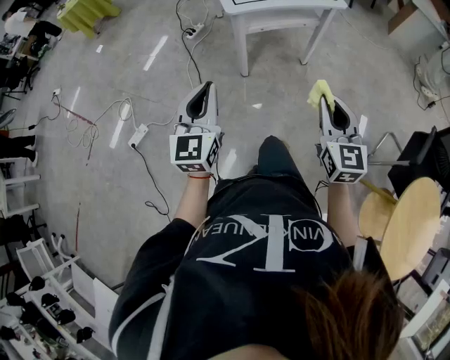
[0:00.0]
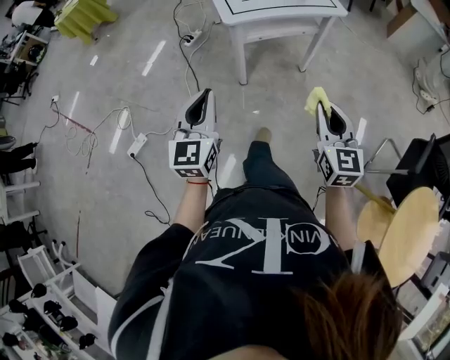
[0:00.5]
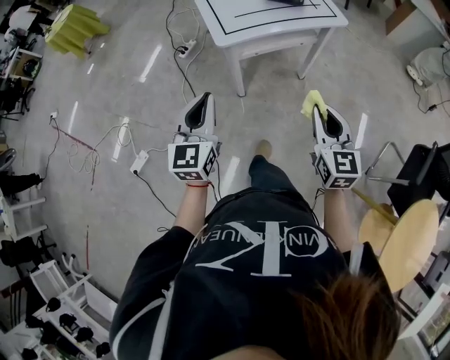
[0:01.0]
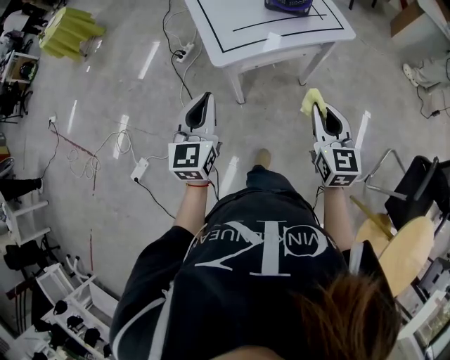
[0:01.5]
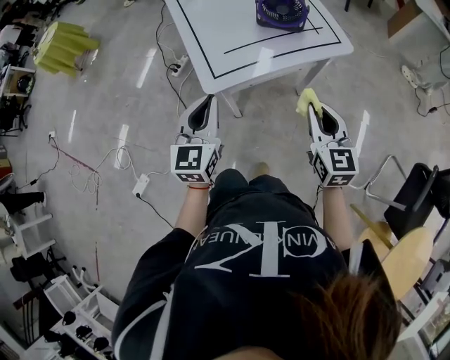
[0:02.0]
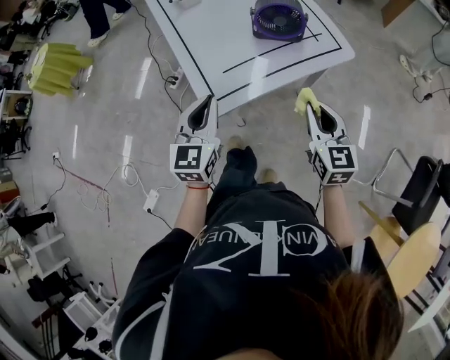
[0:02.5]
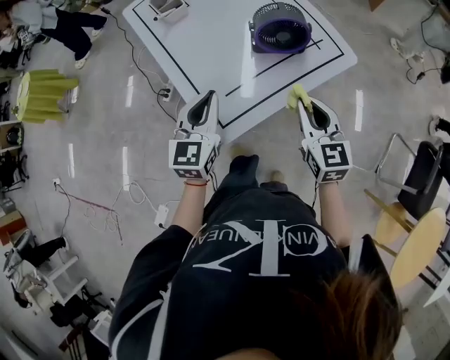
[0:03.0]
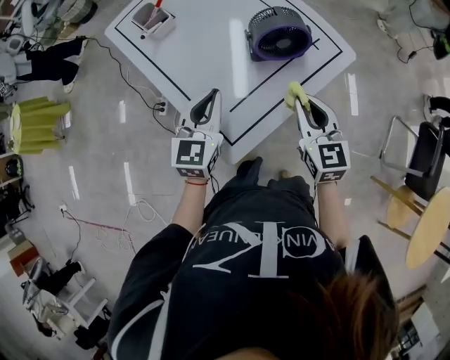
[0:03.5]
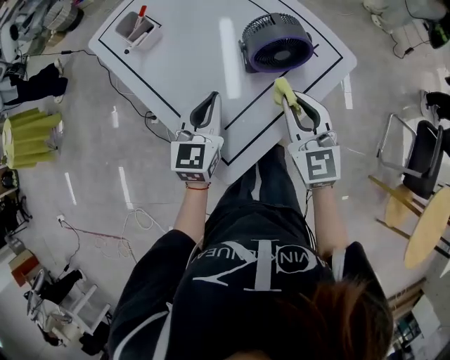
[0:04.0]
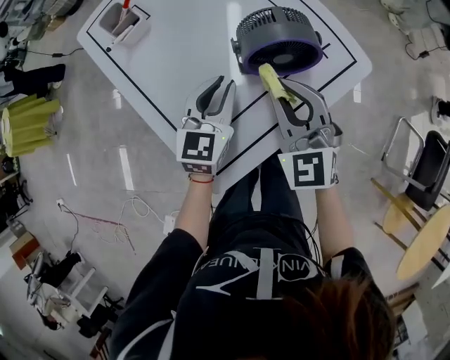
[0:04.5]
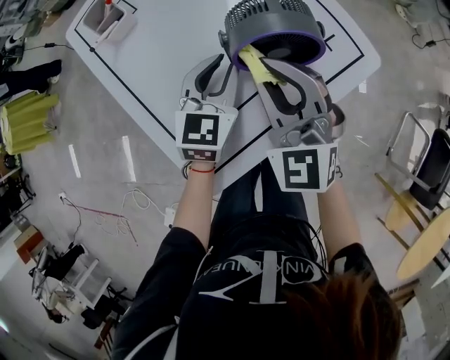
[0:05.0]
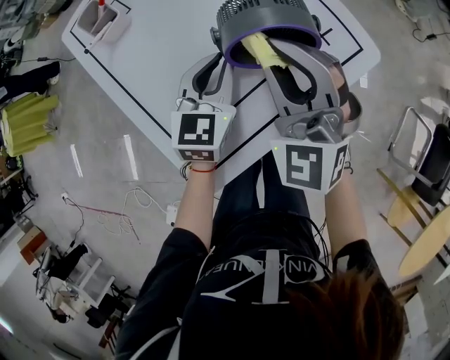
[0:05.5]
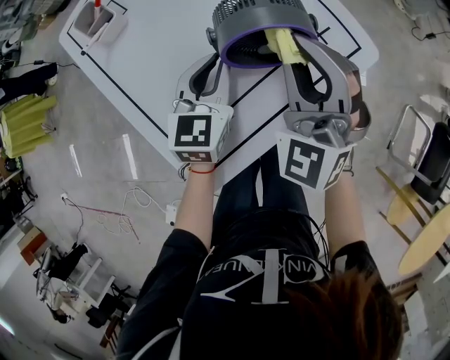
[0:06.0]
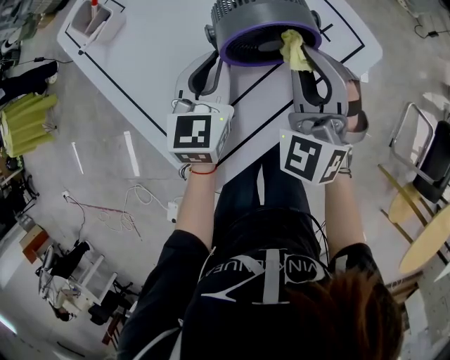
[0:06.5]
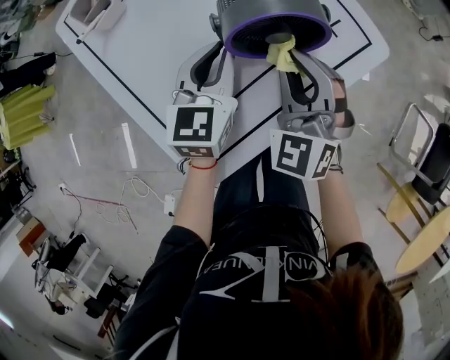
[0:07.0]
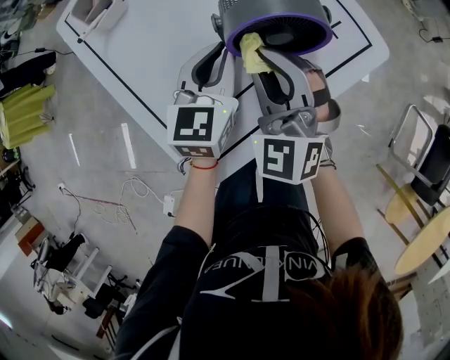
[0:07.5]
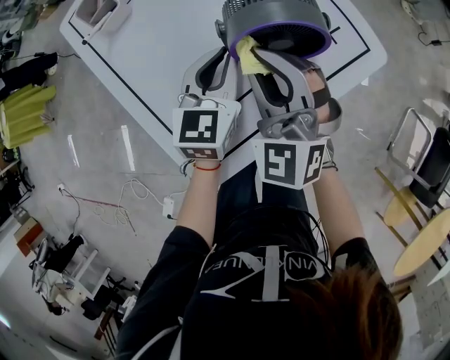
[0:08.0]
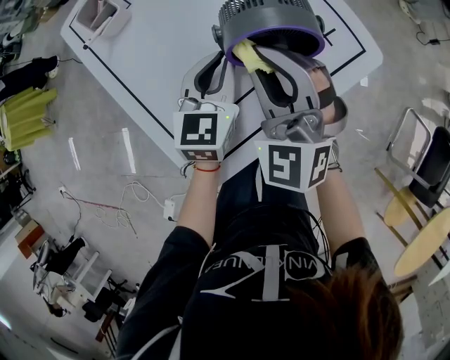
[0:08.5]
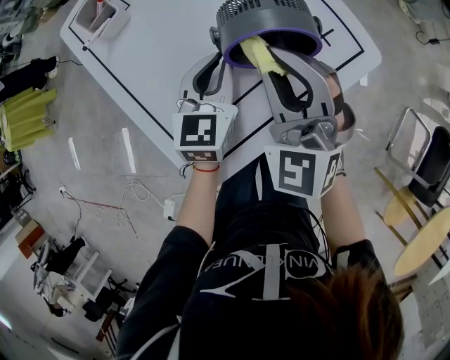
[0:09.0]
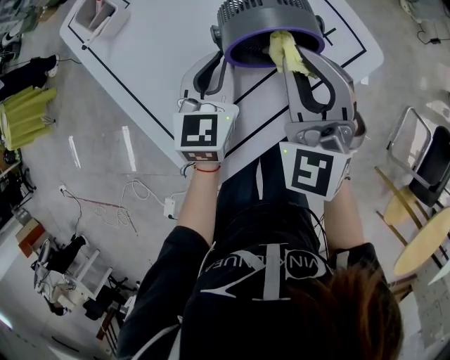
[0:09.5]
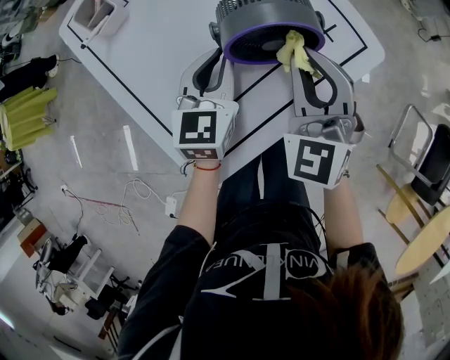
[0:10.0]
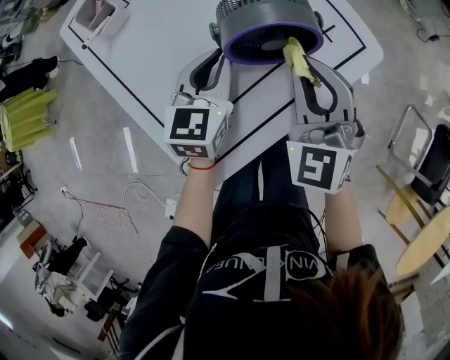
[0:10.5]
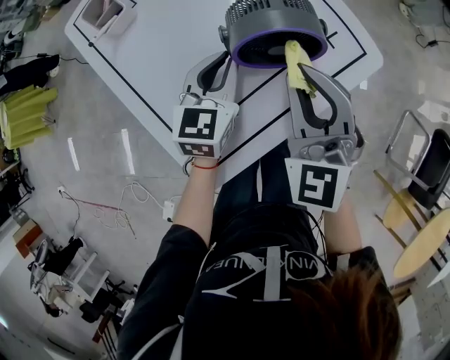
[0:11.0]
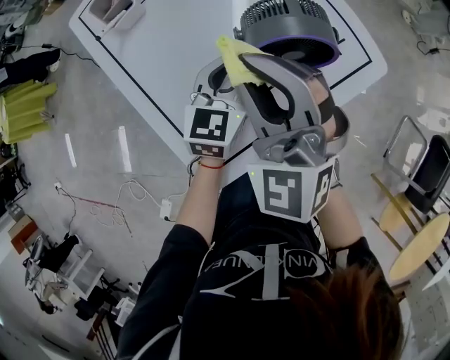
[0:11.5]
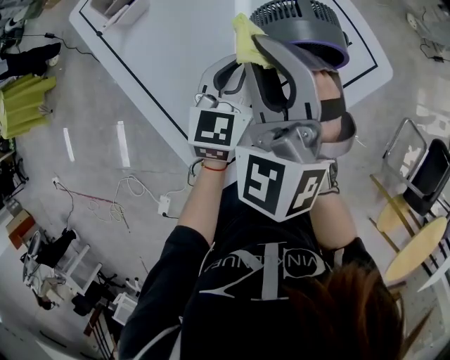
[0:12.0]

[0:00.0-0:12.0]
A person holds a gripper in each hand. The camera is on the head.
0.0 to 2.0 s: The two grippers go approximately 35 cm forward.
2.0 to 4.0 s: The left gripper is displaced forward by approximately 30 cm, and swivels approximately 30 degrees; the right gripper goes some 25 cm forward and to the left.
4.0 to 6.0 s: The right gripper goes about 10 cm forward, and rotates approximately 40 degrees, while the left gripper moves forward, to the right and downward, about 15 cm.
6.0 to 8.0 s: The right gripper shifts about 5 cm to the left.
8.0 to 10.0 s: The right gripper shifts approximately 10 cm to the right.
10.0 to 12.0 s: The right gripper moves to the left and upward, approximately 15 cm.

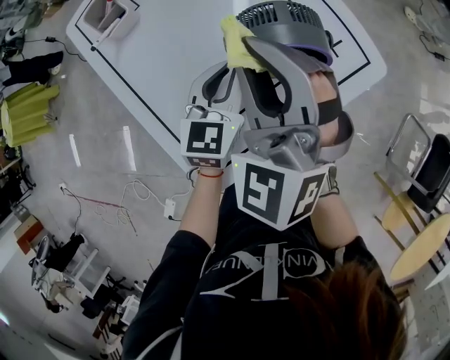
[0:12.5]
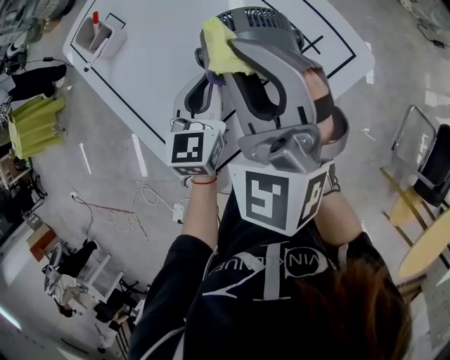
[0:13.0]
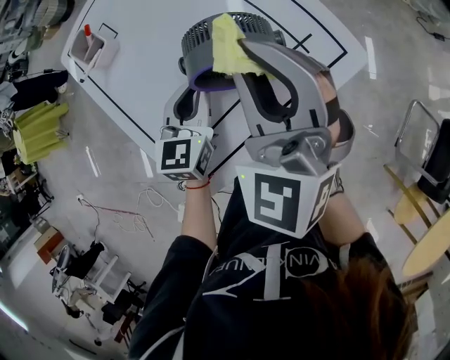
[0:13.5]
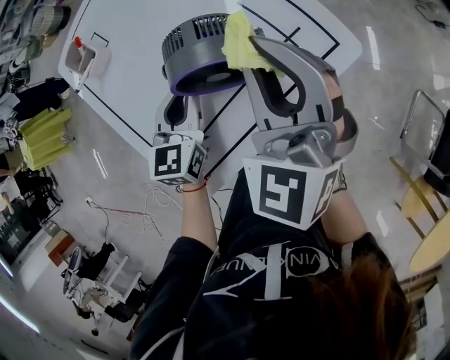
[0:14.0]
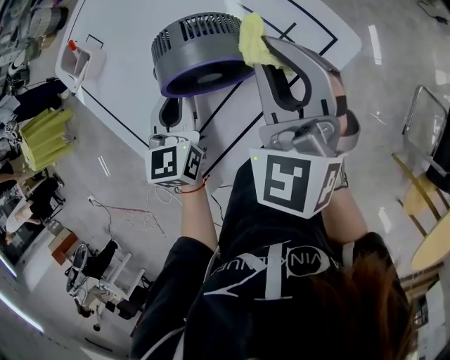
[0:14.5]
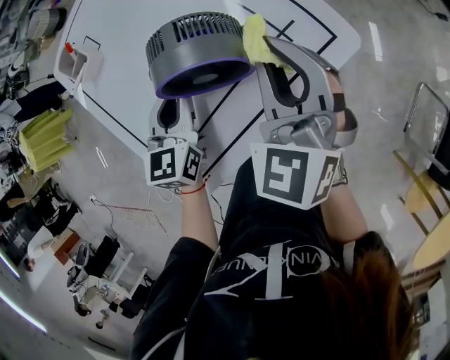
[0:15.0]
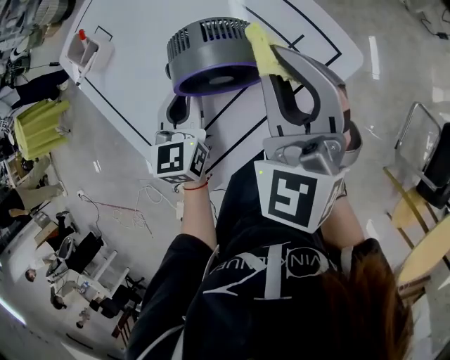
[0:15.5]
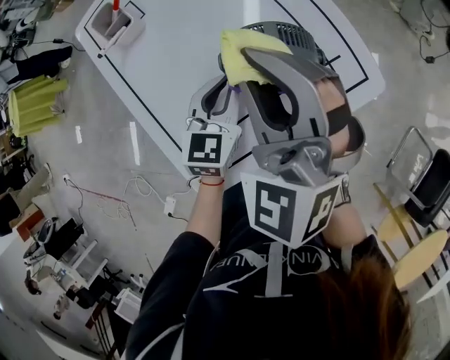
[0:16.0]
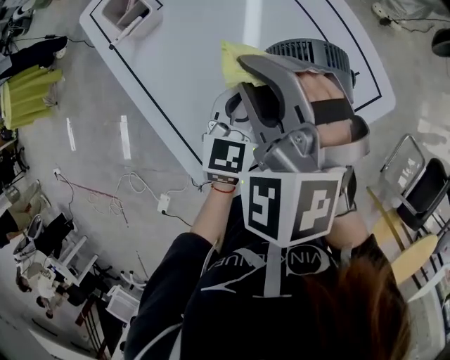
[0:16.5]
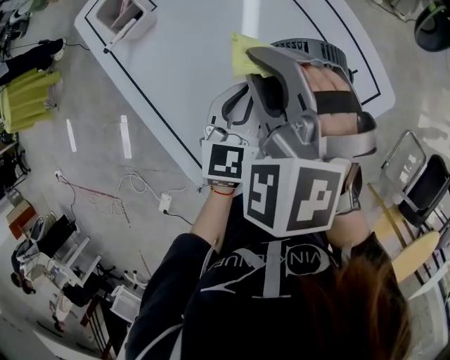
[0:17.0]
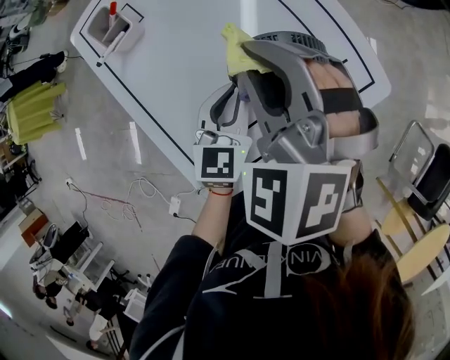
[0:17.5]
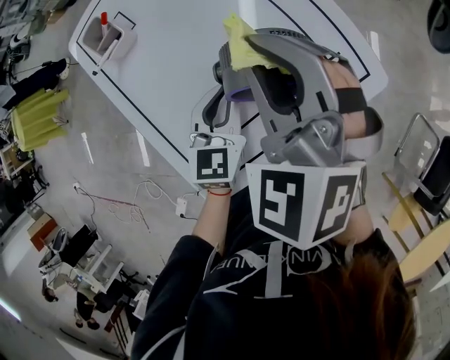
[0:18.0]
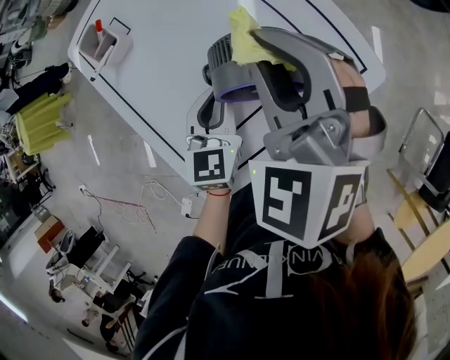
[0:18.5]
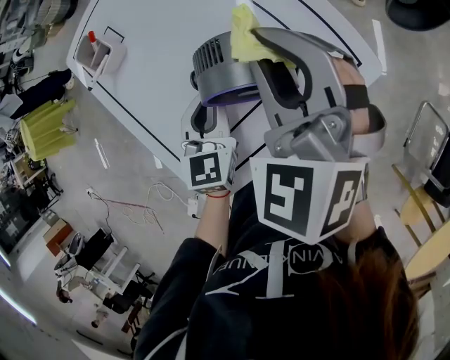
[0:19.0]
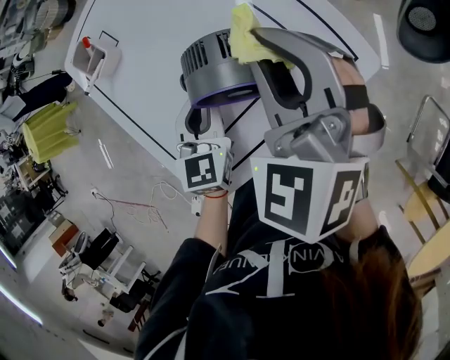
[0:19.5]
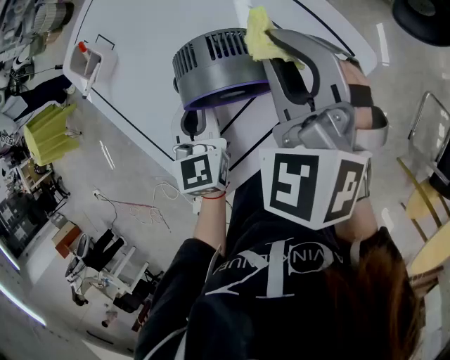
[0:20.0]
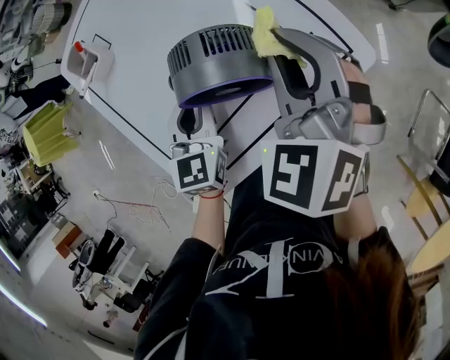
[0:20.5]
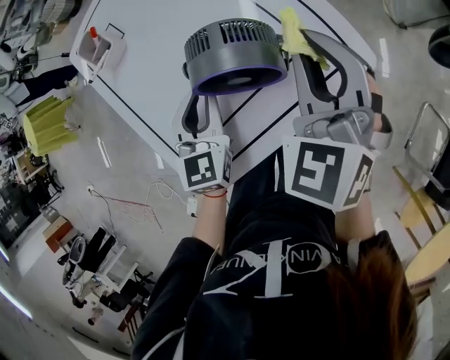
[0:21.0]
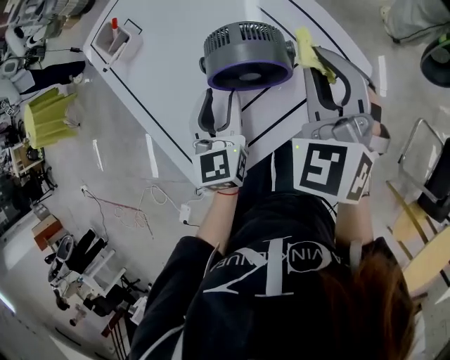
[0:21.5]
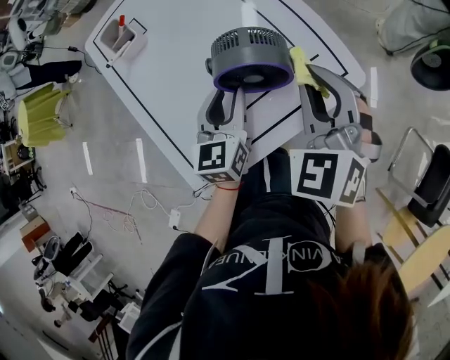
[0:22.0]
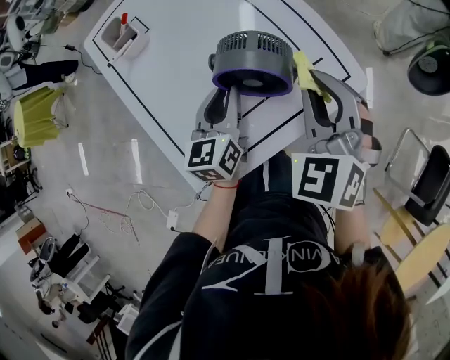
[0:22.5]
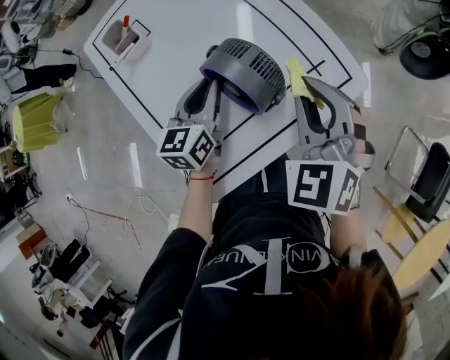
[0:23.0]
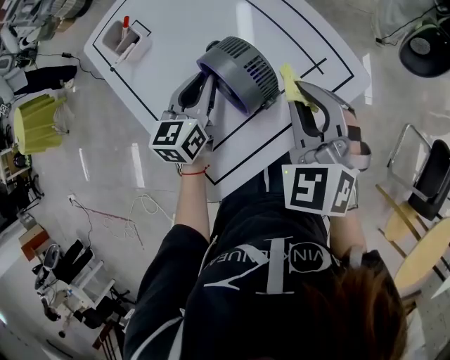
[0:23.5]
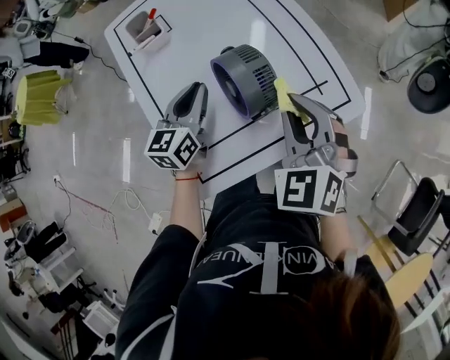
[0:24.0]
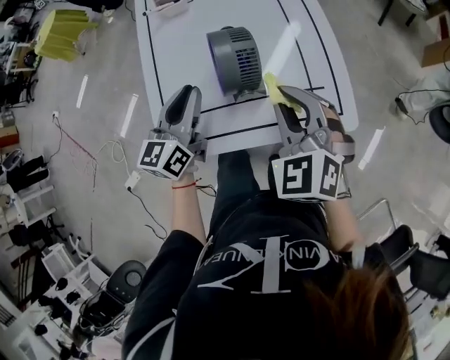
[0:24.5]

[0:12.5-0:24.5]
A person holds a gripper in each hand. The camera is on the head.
12.5 to 14.5 s: The right gripper is displaced to the right by some 15 cm.
14.5 to 16.5 s: The right gripper moves to the left, roughly 20 cm, and changes its angle by roughly 40 degrees.
16.5 to 18.5 s: The right gripper is displaced to the right by roughly 10 cm.
18.5 to 20.5 s: The right gripper is displaced to the right and downward by roughly 10 cm.
20.5 to 22.5 s: The right gripper travels backward by approximately 5 cm. Meanwhile the left gripper turns by some 30 degrees, and opens and closes again.
22.5 to 24.5 s: The left gripper changes place by roughly 10 cm; the right gripper rotates roughly 30 degrees.

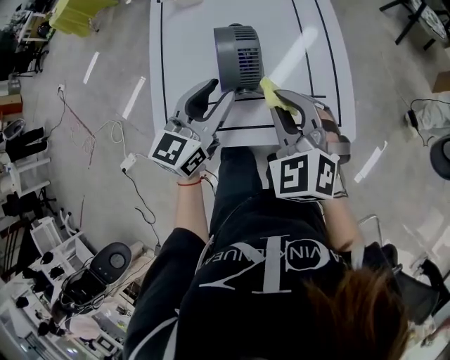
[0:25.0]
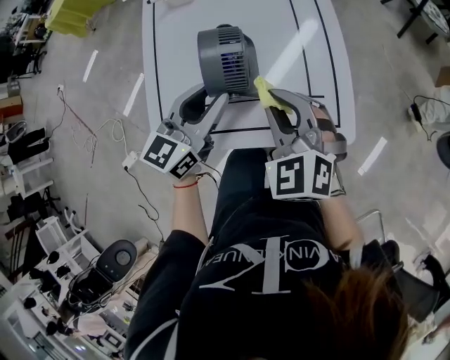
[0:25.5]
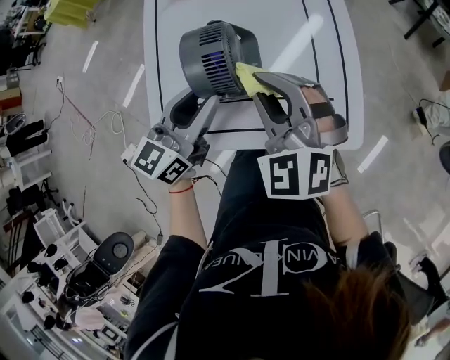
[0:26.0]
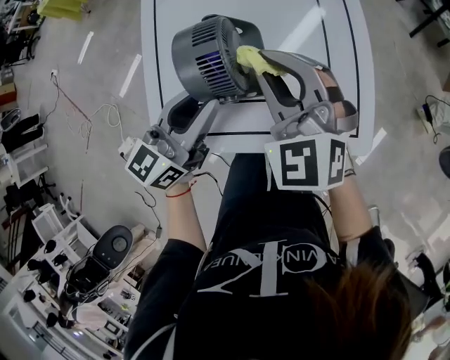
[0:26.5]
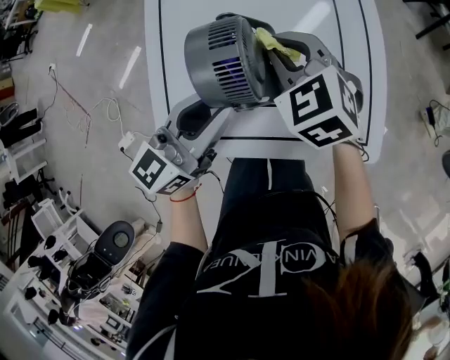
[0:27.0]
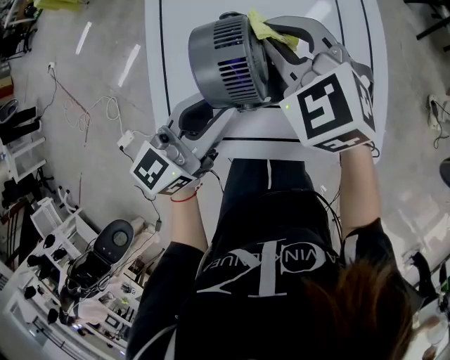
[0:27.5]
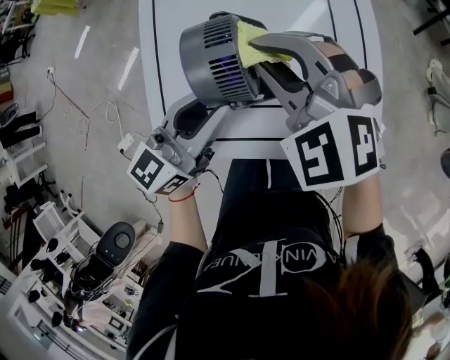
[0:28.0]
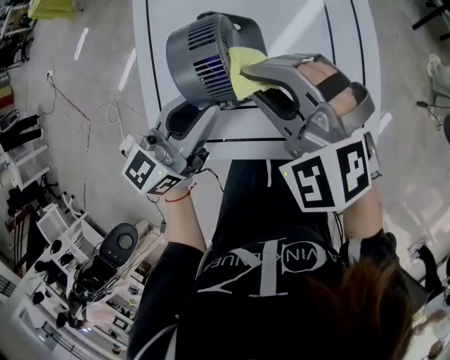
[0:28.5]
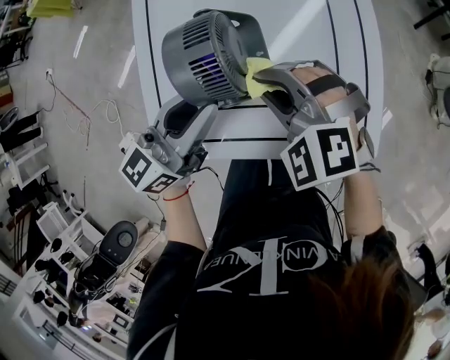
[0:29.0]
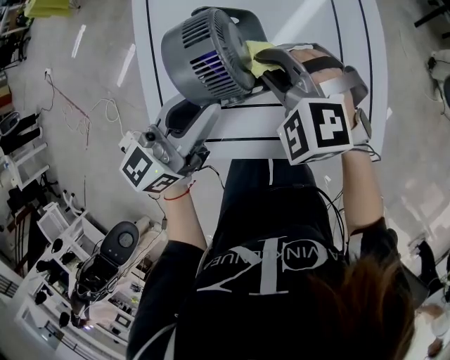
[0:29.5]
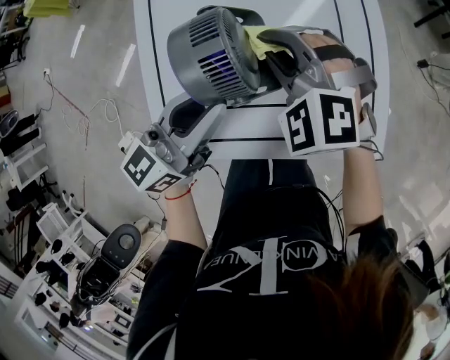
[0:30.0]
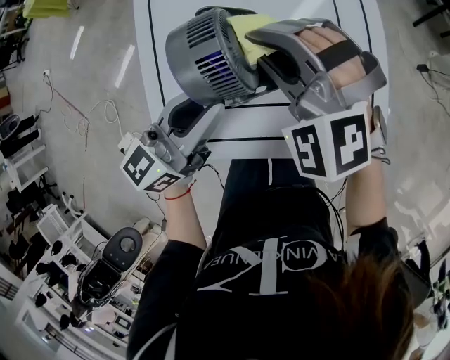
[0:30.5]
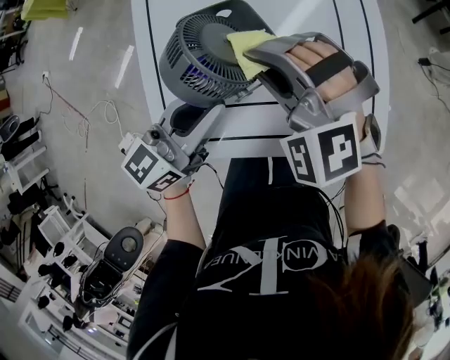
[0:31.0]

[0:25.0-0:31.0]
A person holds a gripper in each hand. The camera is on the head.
25.0 to 27.0 s: The right gripper heads forward and to the left, covering roughly 15 cm.
27.0 to 29.0 s: The right gripper goes roughly 10 cm backward, and rotates about 30 degrees.
